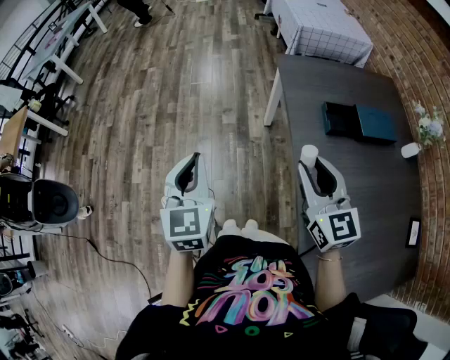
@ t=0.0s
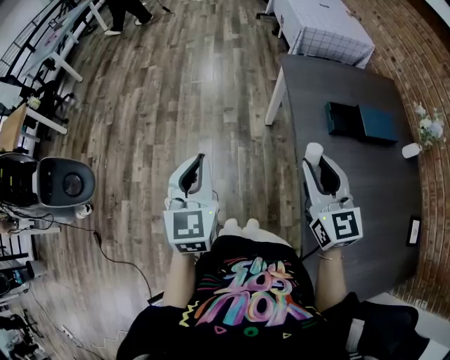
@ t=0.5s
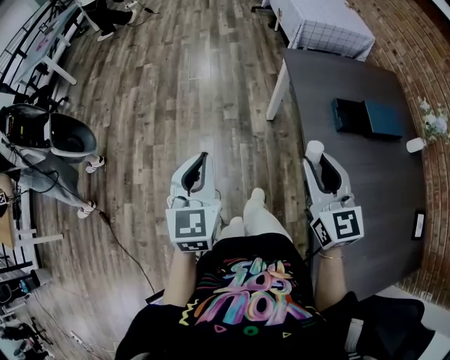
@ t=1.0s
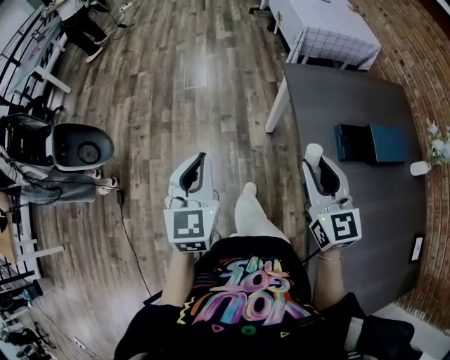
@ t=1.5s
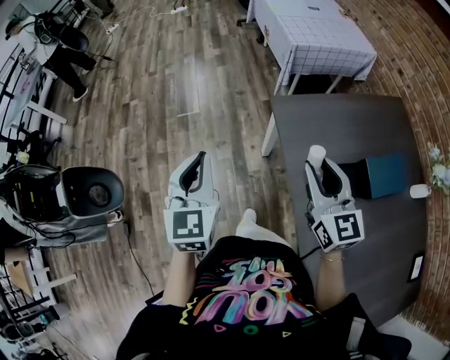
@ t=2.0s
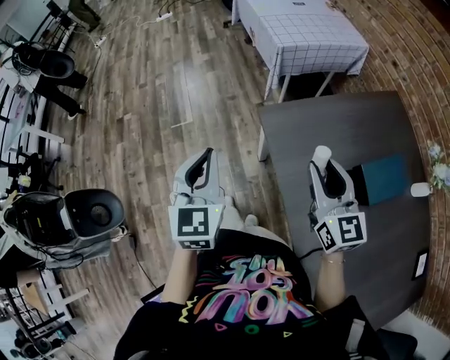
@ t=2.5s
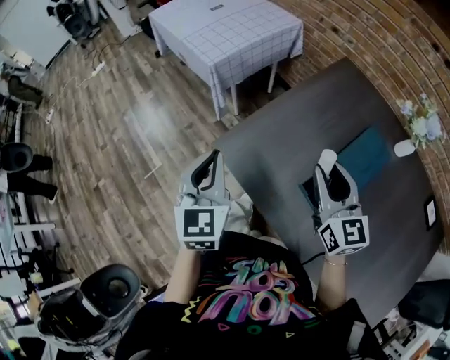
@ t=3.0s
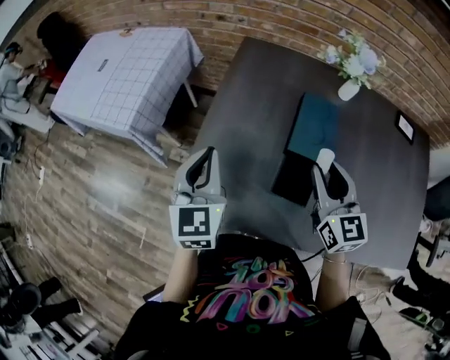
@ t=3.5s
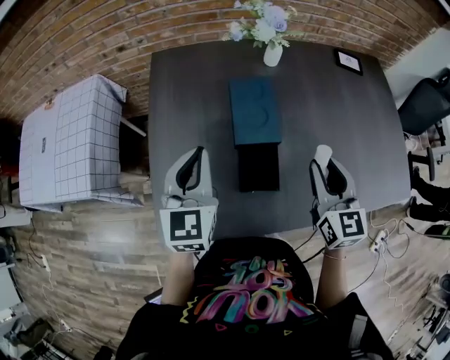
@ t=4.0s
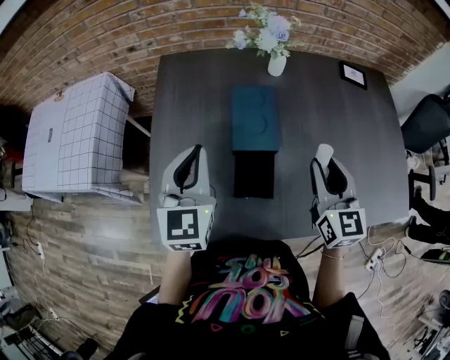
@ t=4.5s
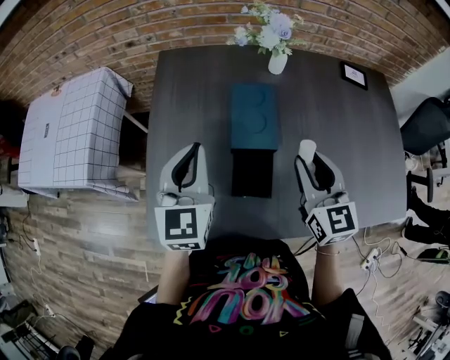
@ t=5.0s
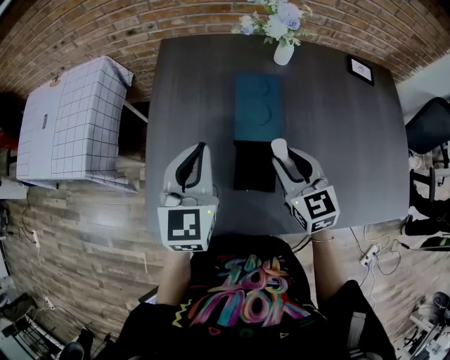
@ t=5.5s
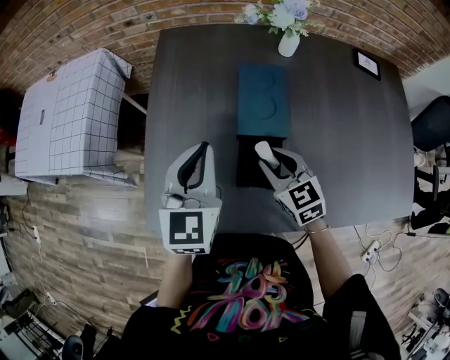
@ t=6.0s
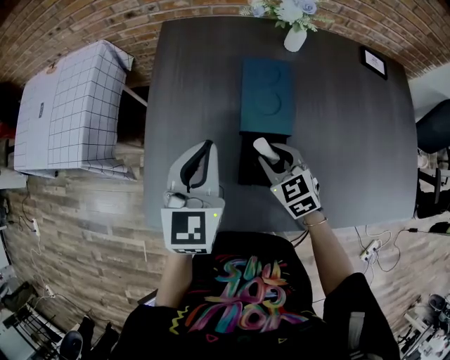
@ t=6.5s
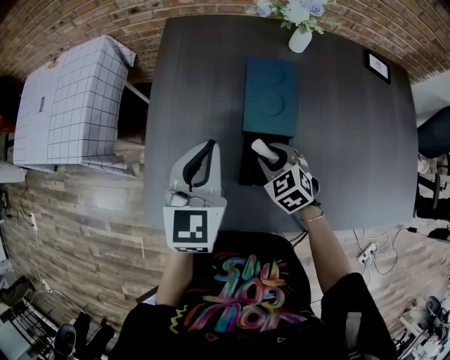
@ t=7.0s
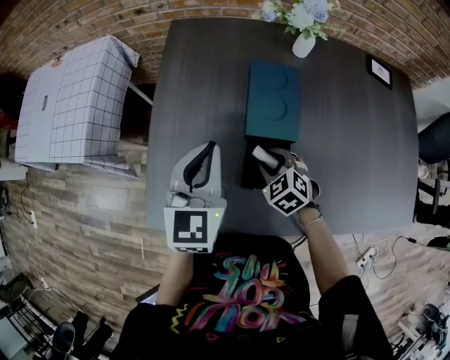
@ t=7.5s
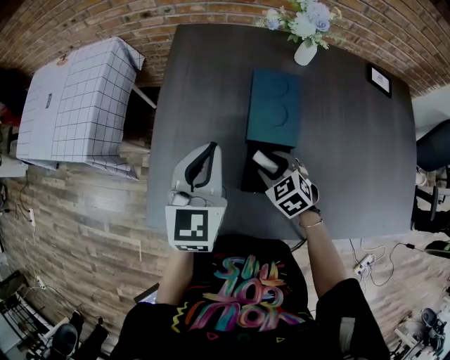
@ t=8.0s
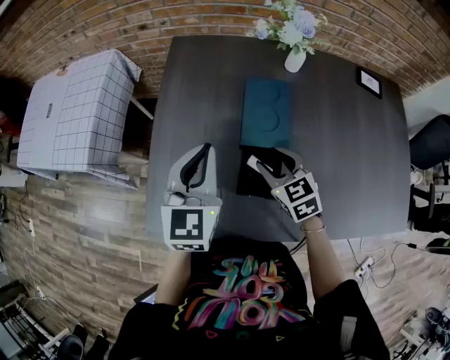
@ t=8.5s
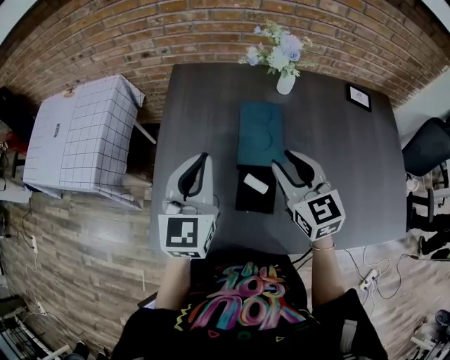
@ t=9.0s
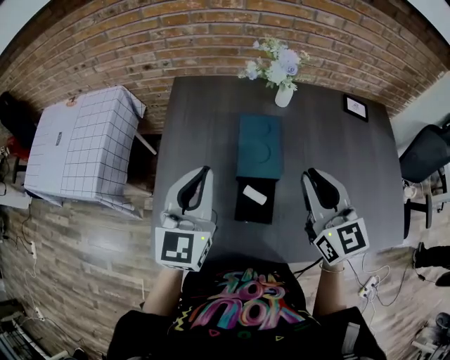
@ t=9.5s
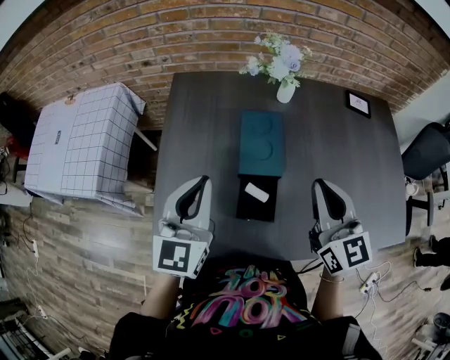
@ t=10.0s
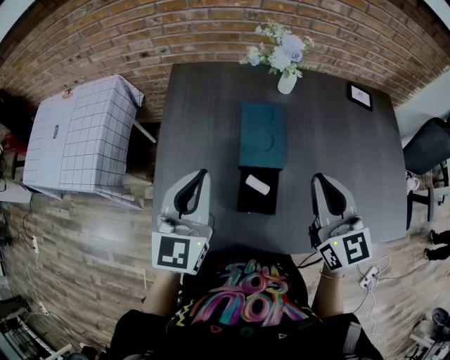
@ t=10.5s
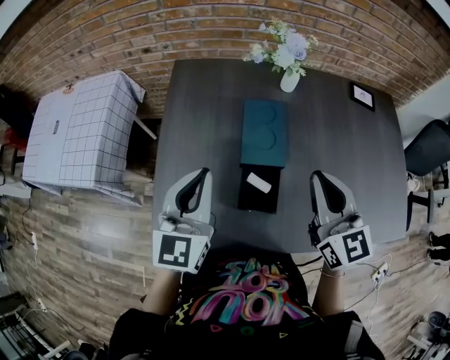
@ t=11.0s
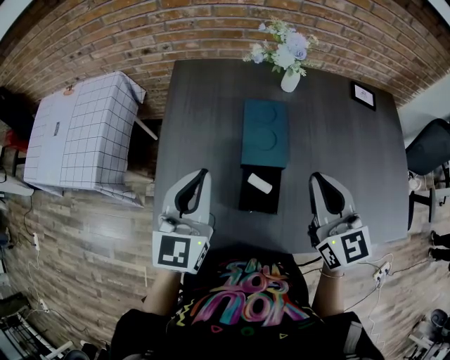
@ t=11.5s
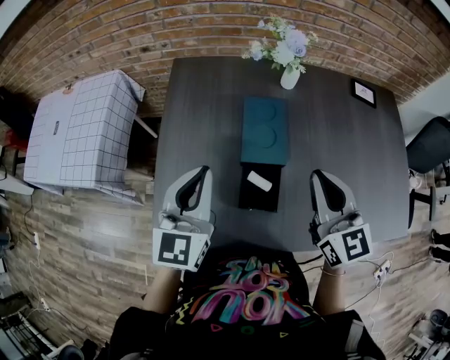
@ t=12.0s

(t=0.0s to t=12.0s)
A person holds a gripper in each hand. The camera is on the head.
t=0.0s - t=2.0s: Both grippers travel together forward, about 30 cm.
t=2.0s - t=4.0s: The left gripper changes place by some 50 cm, and changes its angle by approximately 90 degrees, while the right gripper shifts by approximately 30 cm, and changes its angle by approximately 90 degrees.
t=4.0s - t=6.0s: The right gripper is displaced downward and to the left by about 15 cm, and turns by approximately 30 degrees.
t=6.0s - t=8.0s: The right gripper is displaced downward by some 10 cm, and swivels some 30 degrees.
t=8.0s - t=10.0s: The right gripper goes about 30 cm upward, points its fingers some 50 degrees further upward, and closes its fingers. Meanwhile the left gripper travels upward by roughly 5 cm.
t=10.0s - t=12.0s: The grippers move only a little.

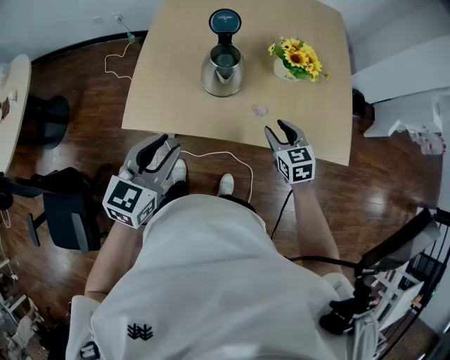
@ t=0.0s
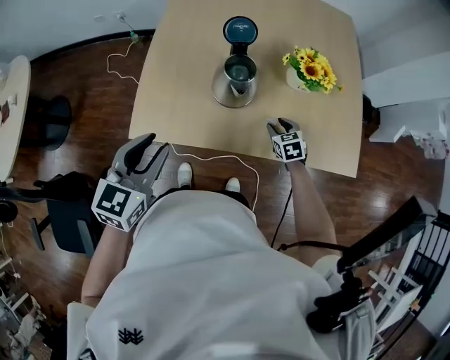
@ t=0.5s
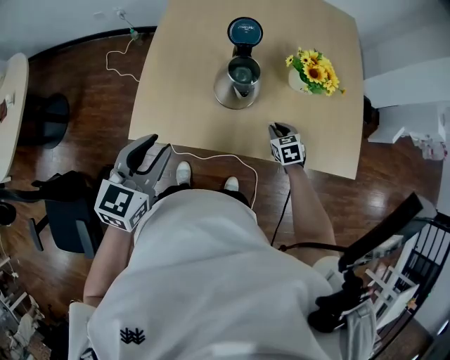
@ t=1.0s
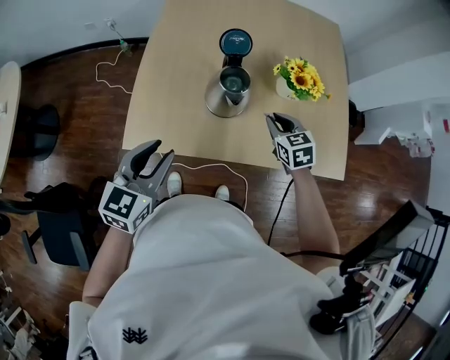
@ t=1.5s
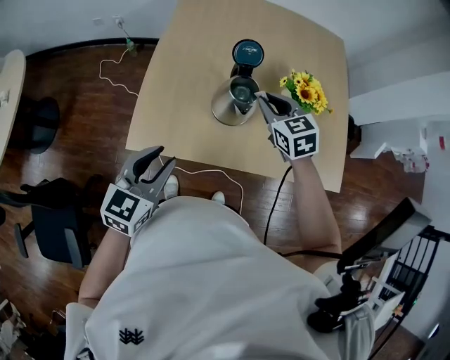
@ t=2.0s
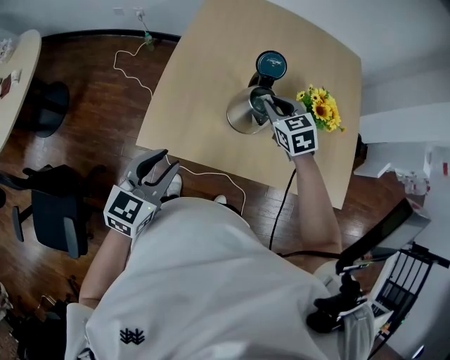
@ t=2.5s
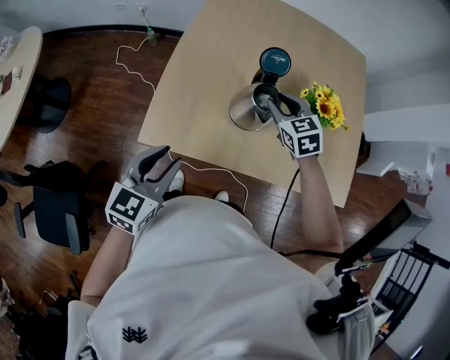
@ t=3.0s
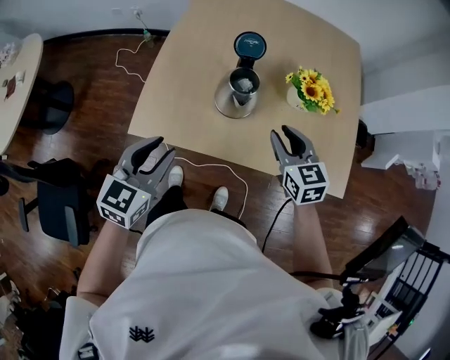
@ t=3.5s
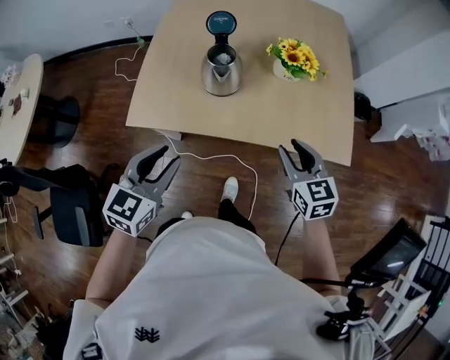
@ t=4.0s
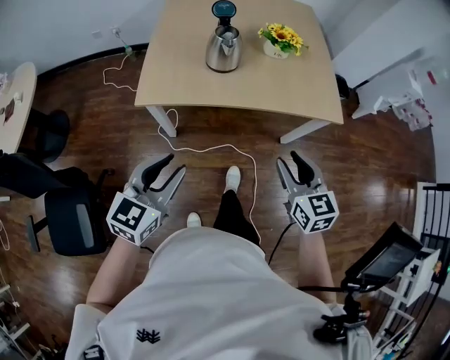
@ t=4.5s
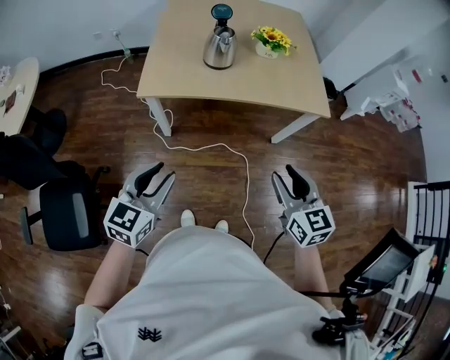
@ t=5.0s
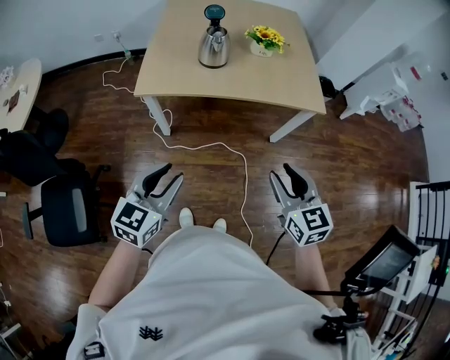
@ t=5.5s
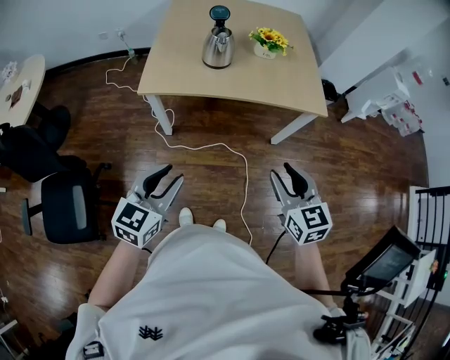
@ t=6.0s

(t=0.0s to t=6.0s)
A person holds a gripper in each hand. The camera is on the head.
t=0.0s - t=2.0s: The right gripper is displaced forward, to the left and upward by about 20 cm, and closes its fingers. The left gripper moves to the left, approximately 10 cm.
t=2.0s - t=4.0s: The right gripper shifts approximately 30 cm backward and to the right, and opens up. Meanwhile the left gripper moves backward and to the right, some 15 cm.
t=4.0s - t=6.0s: Both grippers move backward, about 35 cm.

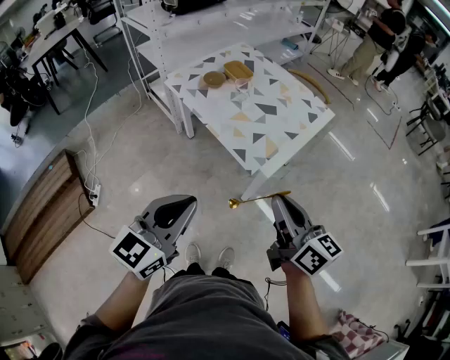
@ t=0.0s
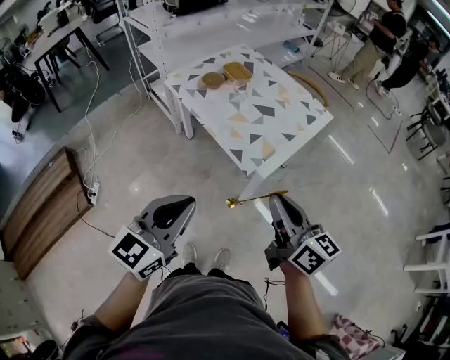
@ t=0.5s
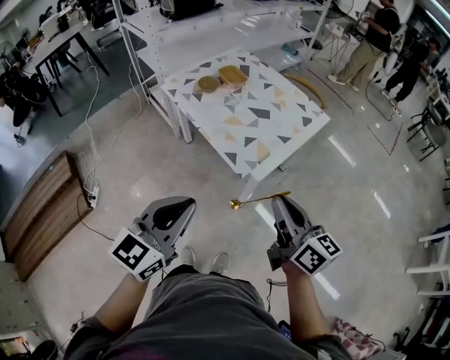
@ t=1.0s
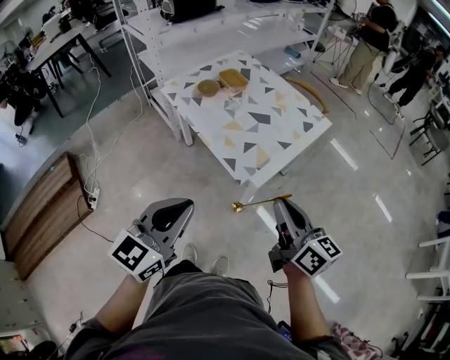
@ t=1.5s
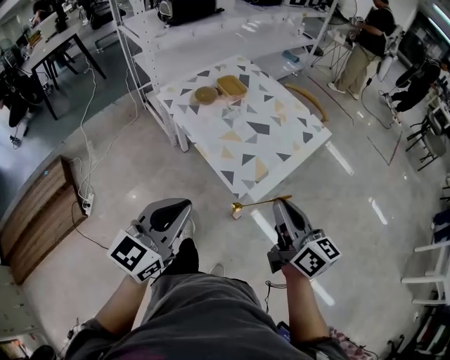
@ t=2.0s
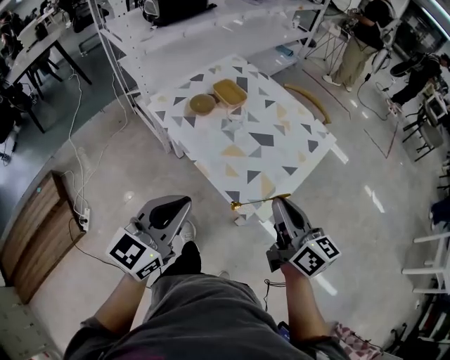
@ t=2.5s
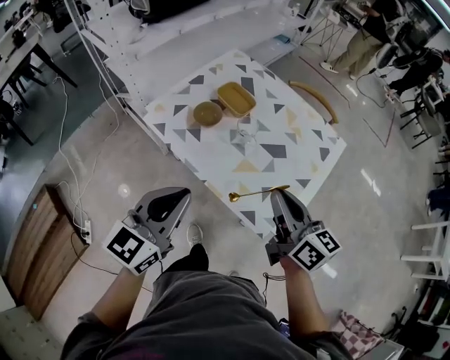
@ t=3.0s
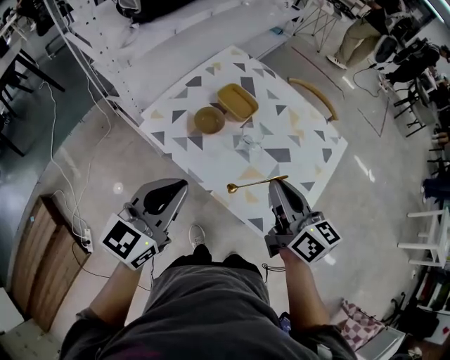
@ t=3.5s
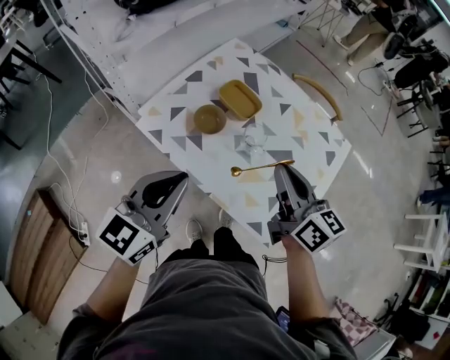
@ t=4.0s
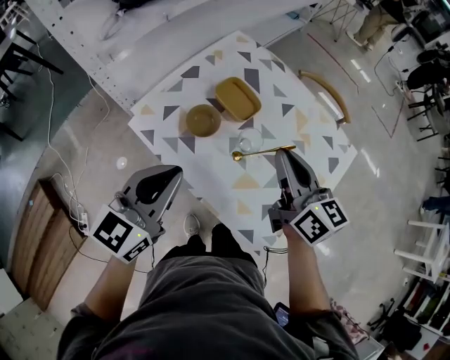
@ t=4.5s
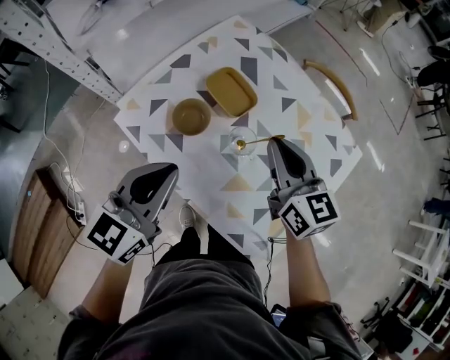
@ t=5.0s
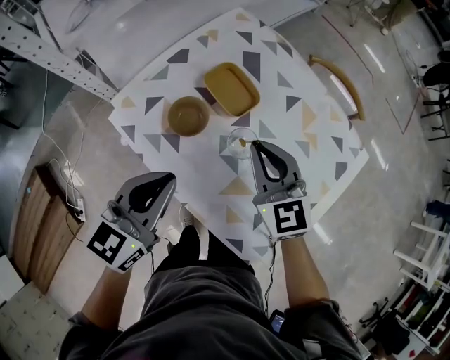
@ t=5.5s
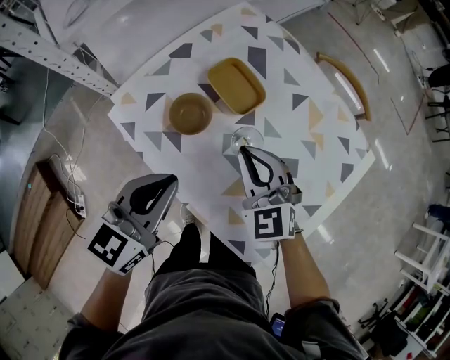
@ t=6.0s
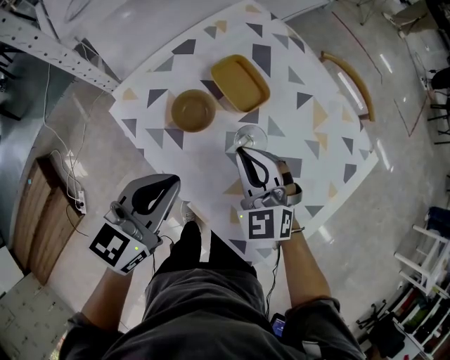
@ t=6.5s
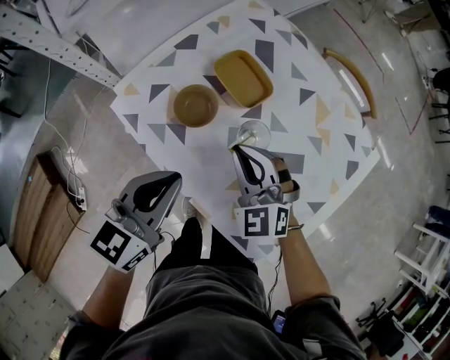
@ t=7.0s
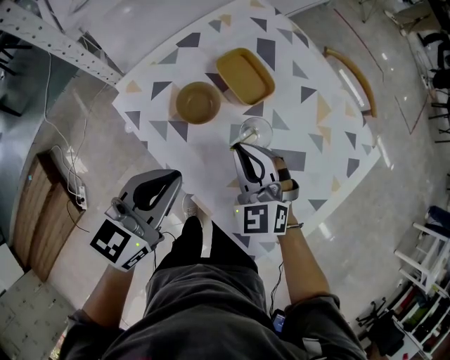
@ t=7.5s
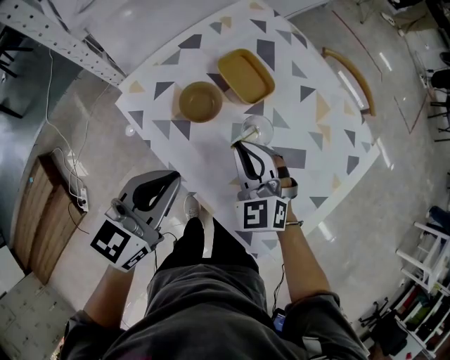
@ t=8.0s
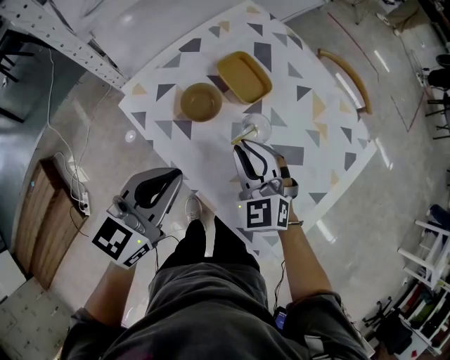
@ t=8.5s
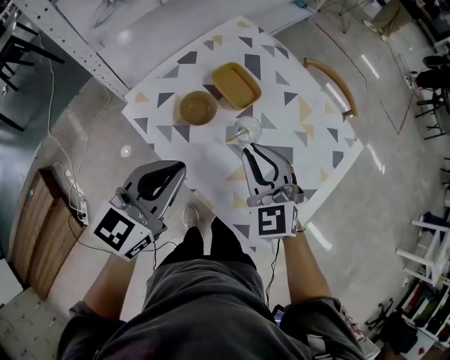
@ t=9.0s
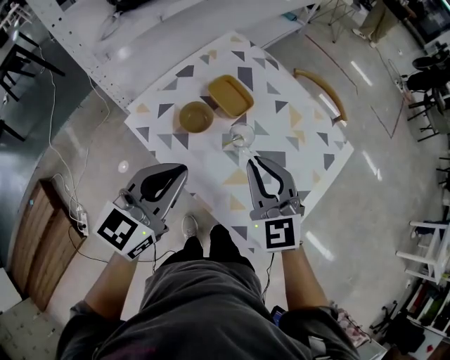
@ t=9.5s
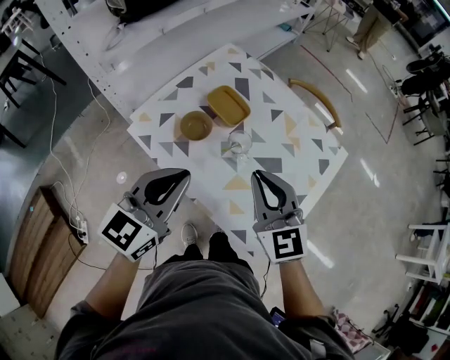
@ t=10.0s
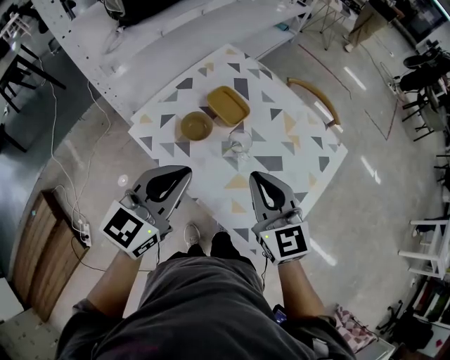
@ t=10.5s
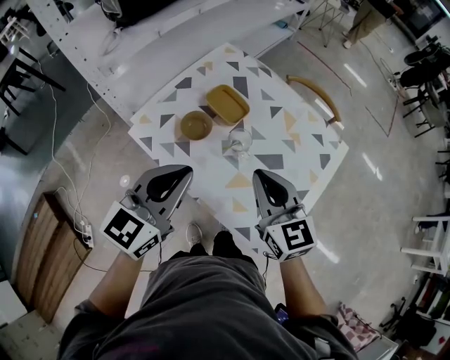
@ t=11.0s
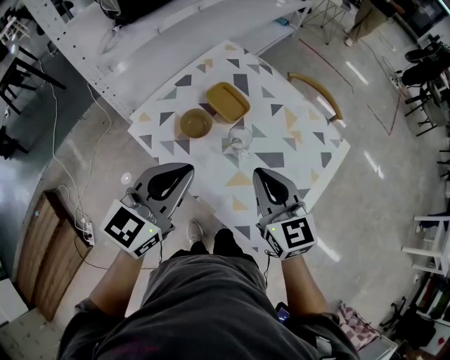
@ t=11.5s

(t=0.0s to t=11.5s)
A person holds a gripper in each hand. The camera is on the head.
t=0.0s - t=2.0s: The right gripper moves forward and to the right, approximately 10 cm; the left gripper moves forward, some 5 cm.
t=2.0s - t=4.0s: Both grippers move forward and to the left, approximately 40 cm.
t=4.0s - t=6.0s: The left gripper travels downward, forward and to the right by approximately 15 cm; the right gripper travels downward and forward by approximately 20 cm, and twists approximately 50 degrees counterclockwise, seen from behind.
t=6.0s - t=7.5s: The grippers move only a little.
t=7.5s - t=9.5s: The right gripper moves upward and backward, approximately 15 cm, while the left gripper moves upward, approximately 10 cm.
t=9.5s - t=11.5s: There are only small adjustments of the grippers.
